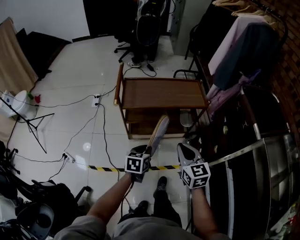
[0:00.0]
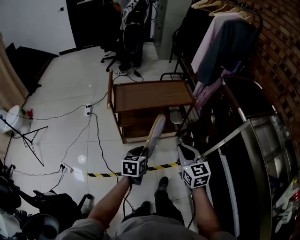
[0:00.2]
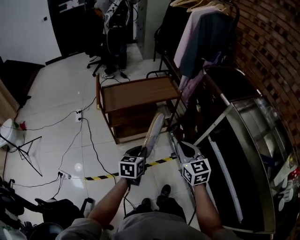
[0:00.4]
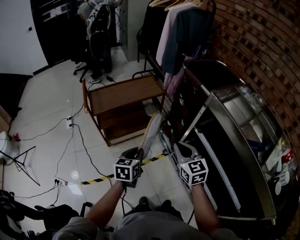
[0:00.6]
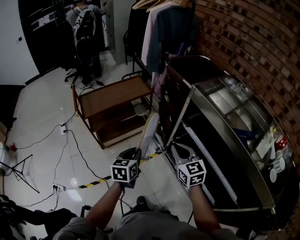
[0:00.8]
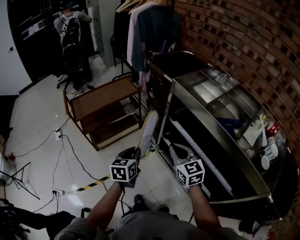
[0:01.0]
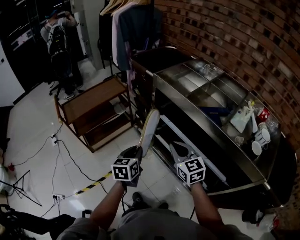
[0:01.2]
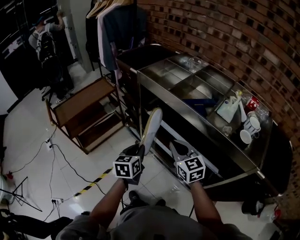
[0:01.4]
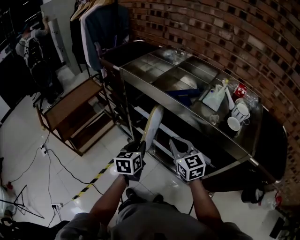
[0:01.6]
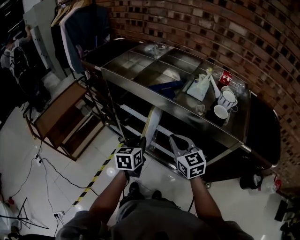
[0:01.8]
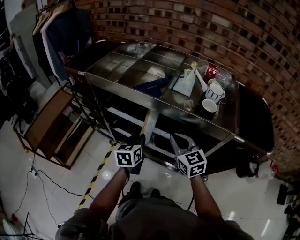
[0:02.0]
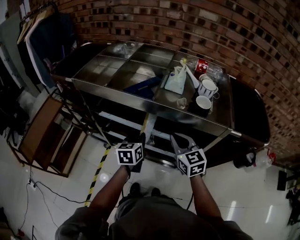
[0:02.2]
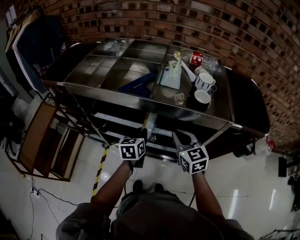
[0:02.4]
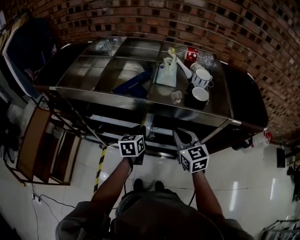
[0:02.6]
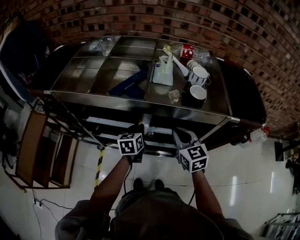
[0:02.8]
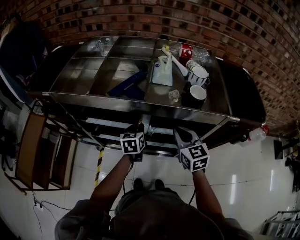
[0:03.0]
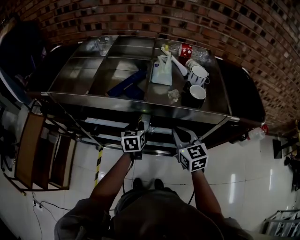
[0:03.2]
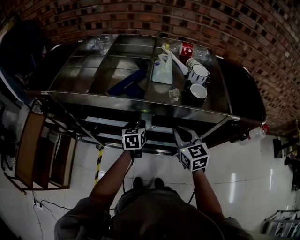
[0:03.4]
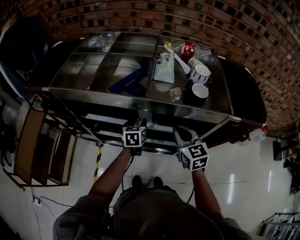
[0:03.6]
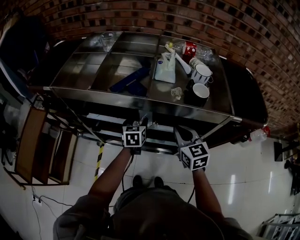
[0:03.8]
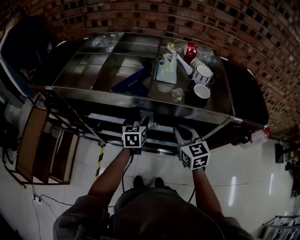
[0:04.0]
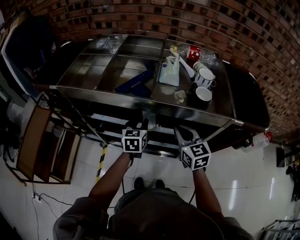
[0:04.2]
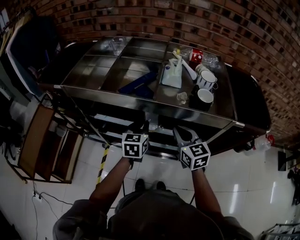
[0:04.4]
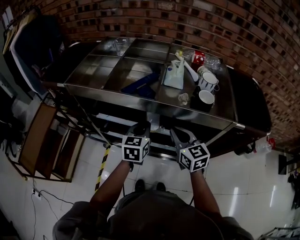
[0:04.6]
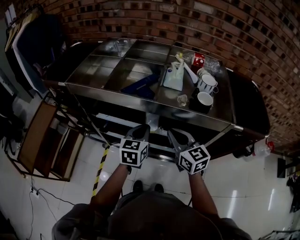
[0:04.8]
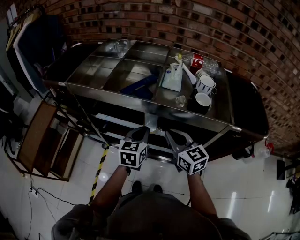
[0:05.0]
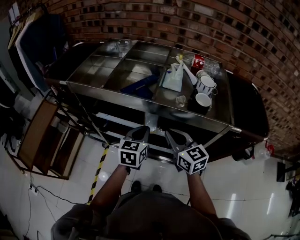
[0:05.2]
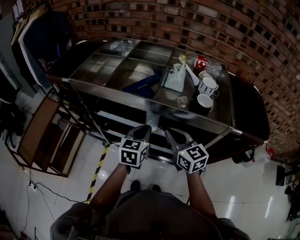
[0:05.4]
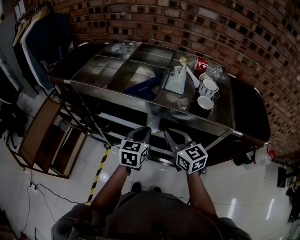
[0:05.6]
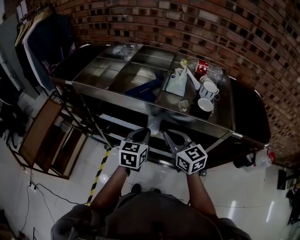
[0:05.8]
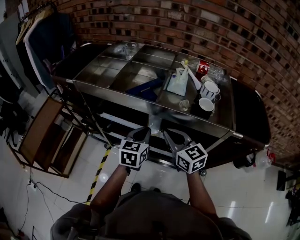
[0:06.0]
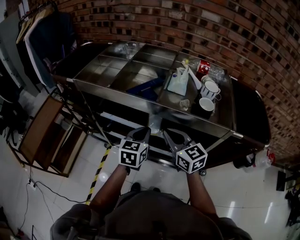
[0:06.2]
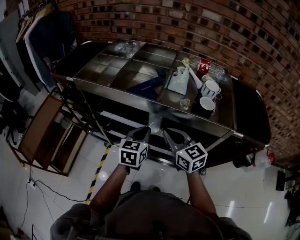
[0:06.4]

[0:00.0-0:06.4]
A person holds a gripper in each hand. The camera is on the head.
0:00.0 to 0:01.6: The pair of grippers is taken roughly 50 cm. The right gripper changes its angle by about 40 degrees. Meanwhile the left gripper changes its angle by about 40 degrees.
0:01.6 to 0:03.2: The left gripper ends up some 25 cm from where it was, and rotates approximately 30 degrees. Meanwhile the right gripper shifts by some 15 cm, and rotates about 40 degrees.
0:03.2 to 0:04.8: The left gripper shifts about 15 cm upward and backward, and opens, then closes once more; the right gripper shifts approximately 5 cm to the left.
0:04.8 to 0:06.4: The grippers move only a little.

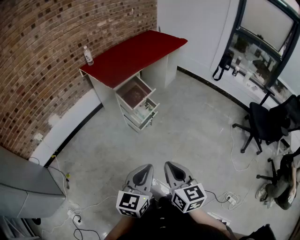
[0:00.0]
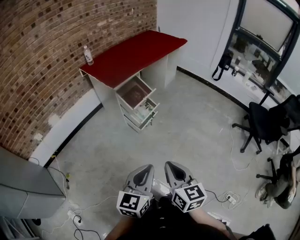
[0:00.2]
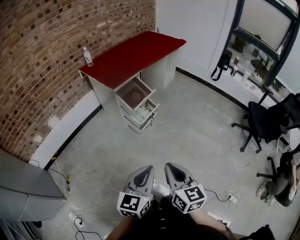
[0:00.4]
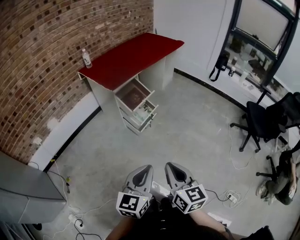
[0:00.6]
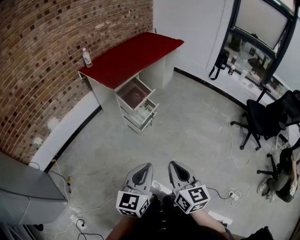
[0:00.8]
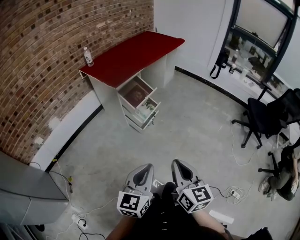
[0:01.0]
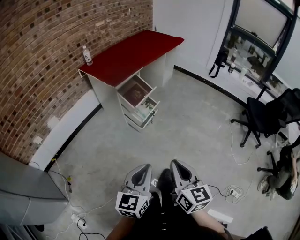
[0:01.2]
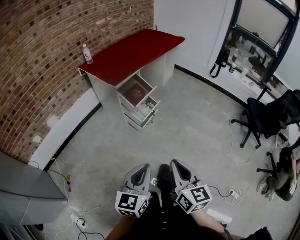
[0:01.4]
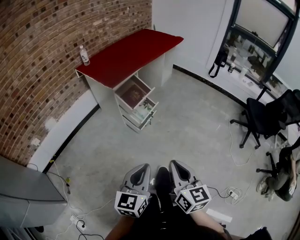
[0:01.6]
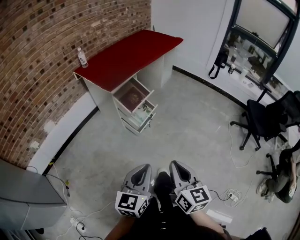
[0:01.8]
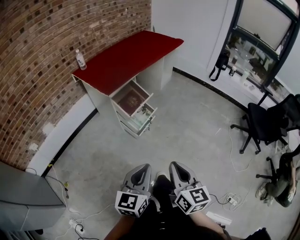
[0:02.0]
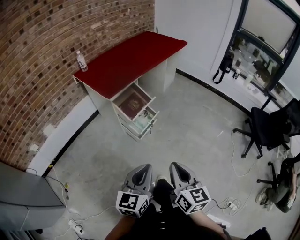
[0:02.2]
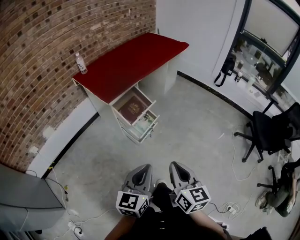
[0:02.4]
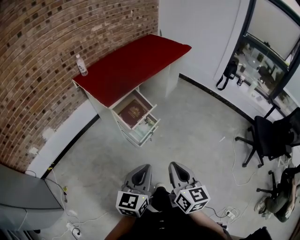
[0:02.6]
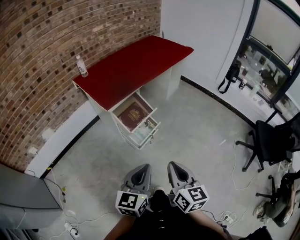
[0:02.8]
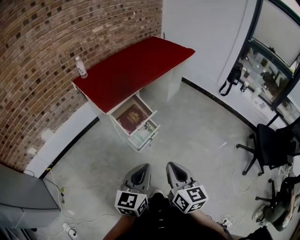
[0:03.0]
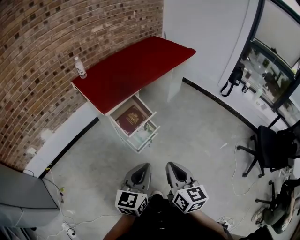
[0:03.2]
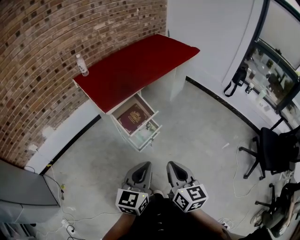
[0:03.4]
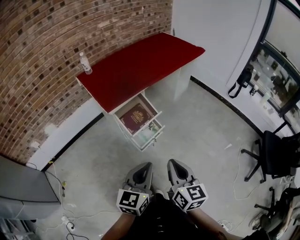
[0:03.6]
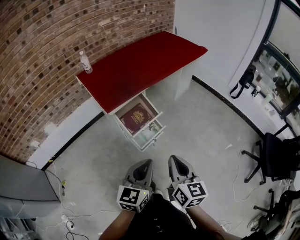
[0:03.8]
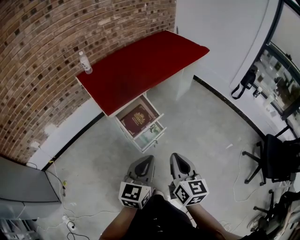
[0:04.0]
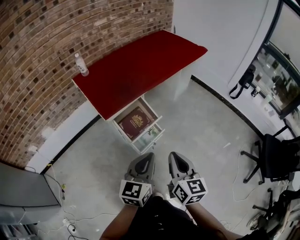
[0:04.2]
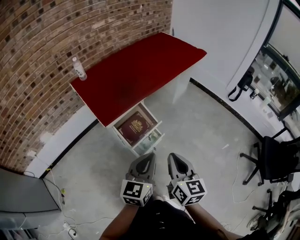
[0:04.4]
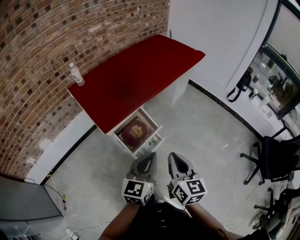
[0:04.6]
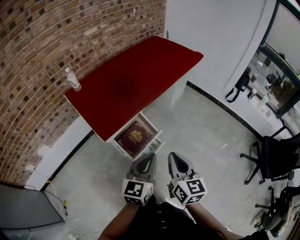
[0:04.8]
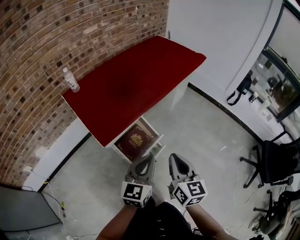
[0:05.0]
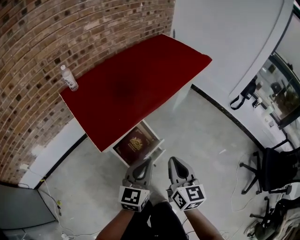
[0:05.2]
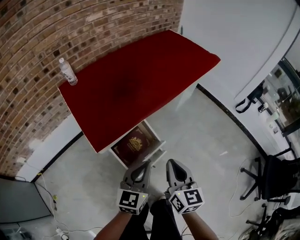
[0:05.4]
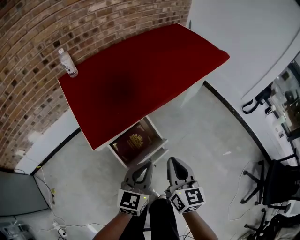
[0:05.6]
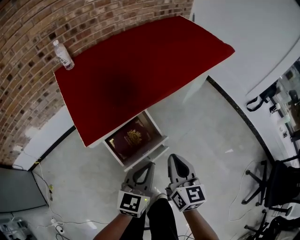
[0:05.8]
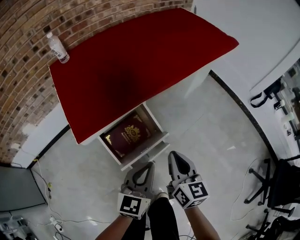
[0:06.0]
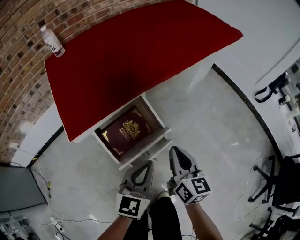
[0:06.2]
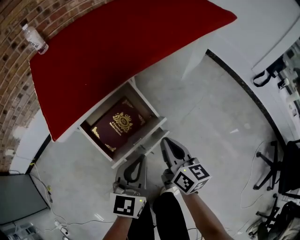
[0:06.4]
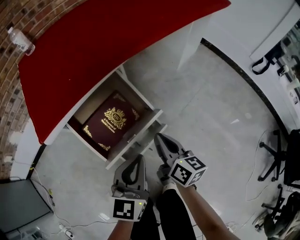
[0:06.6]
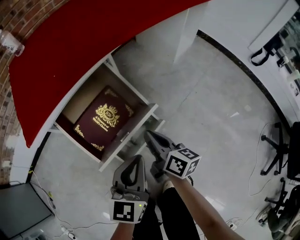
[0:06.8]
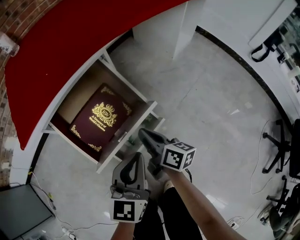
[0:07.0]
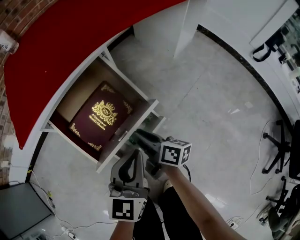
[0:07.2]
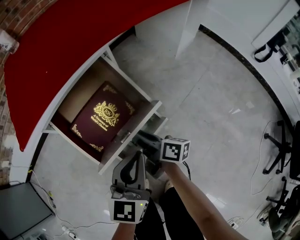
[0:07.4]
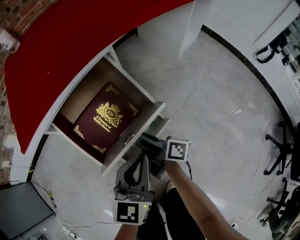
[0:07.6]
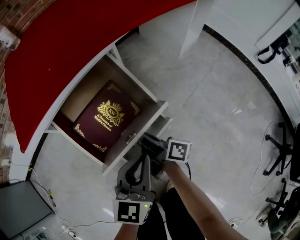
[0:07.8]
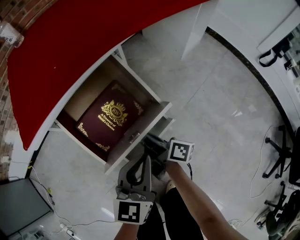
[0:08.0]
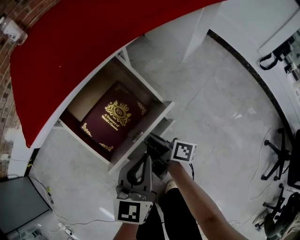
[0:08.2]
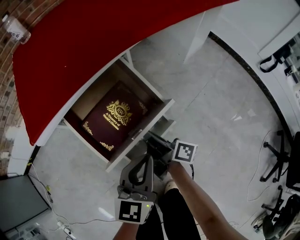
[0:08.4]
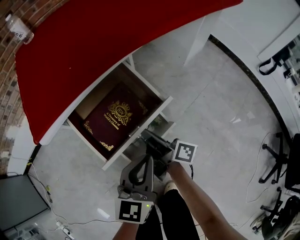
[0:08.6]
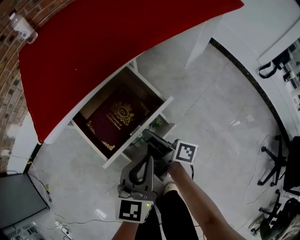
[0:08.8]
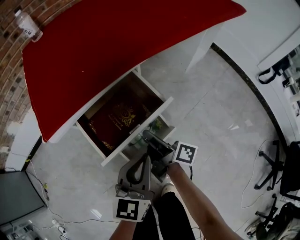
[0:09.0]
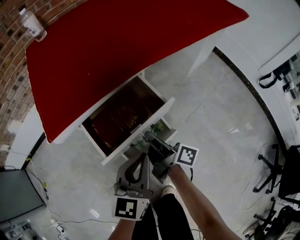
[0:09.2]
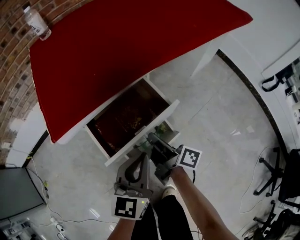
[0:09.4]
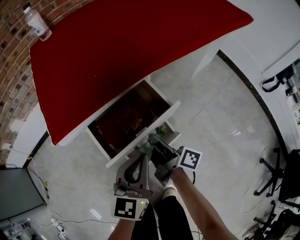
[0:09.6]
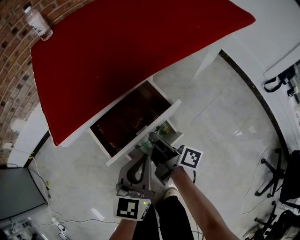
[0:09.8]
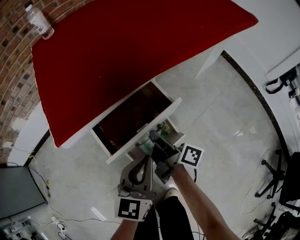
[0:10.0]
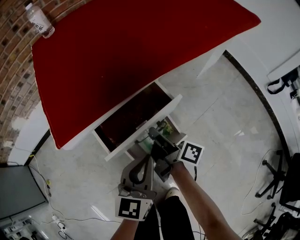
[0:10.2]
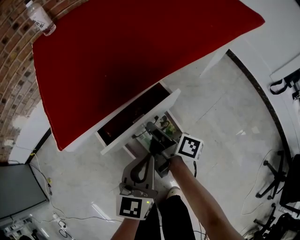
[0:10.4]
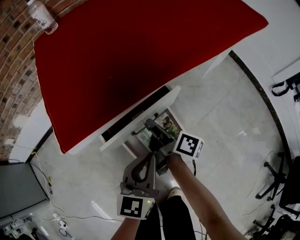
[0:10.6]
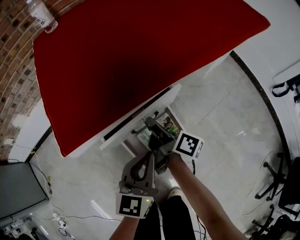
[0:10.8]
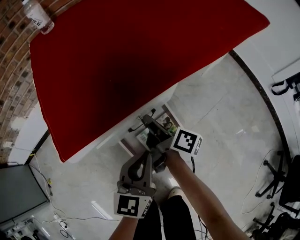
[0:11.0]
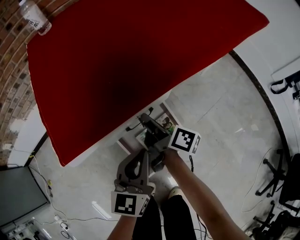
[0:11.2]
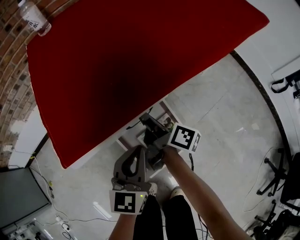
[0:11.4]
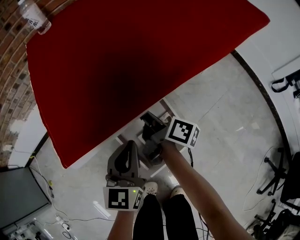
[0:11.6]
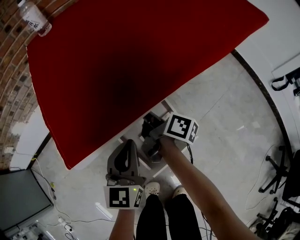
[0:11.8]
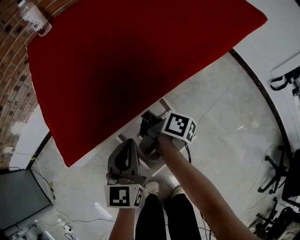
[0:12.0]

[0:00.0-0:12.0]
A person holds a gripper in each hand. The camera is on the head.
0:00.0 to 0:01.6: The left gripper travels to the left by roughly 5 cm.
0:01.6 to 0:03.0: The two grippers go about 25 cm forward.
0:03.0 to 0:04.4: The grippers both shift forward by approximately 20 cm.
0:04.4 to 0:06.0: The left gripper shifts about 25 cm downward and forward, while the right gripper goes about 30 cm forward and downward.
0:06.0 to 0:07.6: The right gripper moves downward, roughly 25 cm, twists some 50 degrees clockwise, seen from behind, and opens up; the left gripper goes some 15 cm downward.
0:07.6 to 0:09.0: The right gripper travels upward by roughly 5 cm. Meanwhile the left gripper moves roughly 5 cm.
0:09.0 to 0:10.4: The right gripper goes some 5 cm forward, while the left gripper shifts by about 5 cm.
0:10.4 to 0:12.0: The left gripper is displaced forward and to the left by about 10 cm, while the right gripper travels forward by some 10 cm.

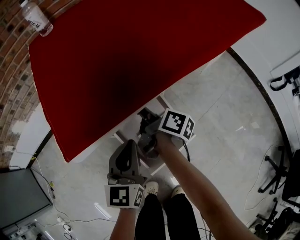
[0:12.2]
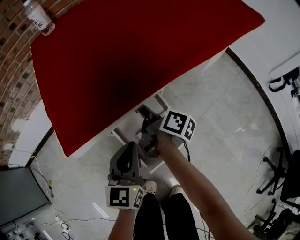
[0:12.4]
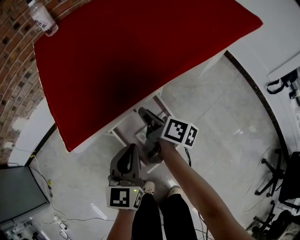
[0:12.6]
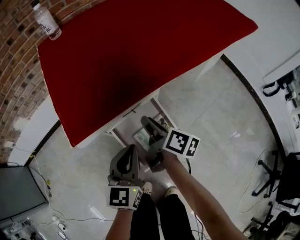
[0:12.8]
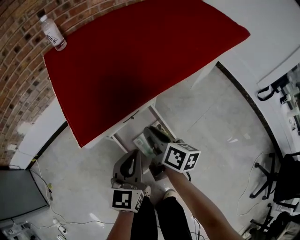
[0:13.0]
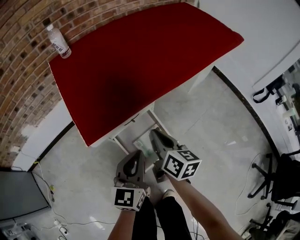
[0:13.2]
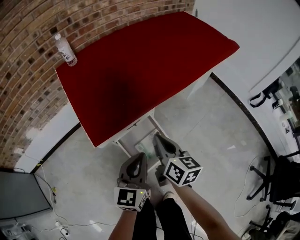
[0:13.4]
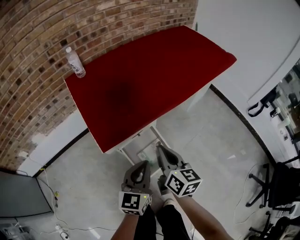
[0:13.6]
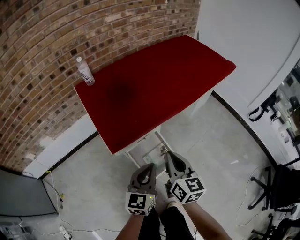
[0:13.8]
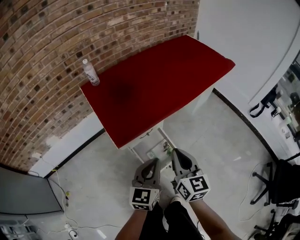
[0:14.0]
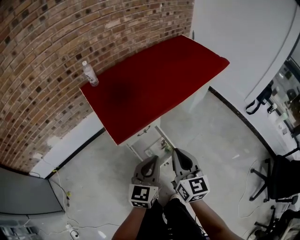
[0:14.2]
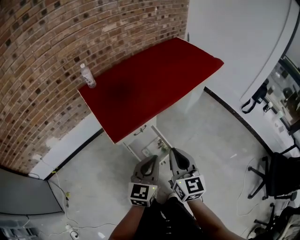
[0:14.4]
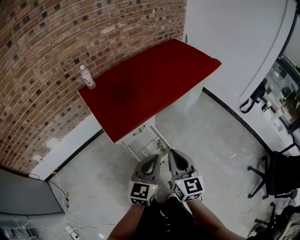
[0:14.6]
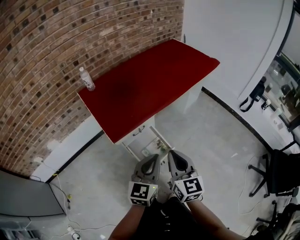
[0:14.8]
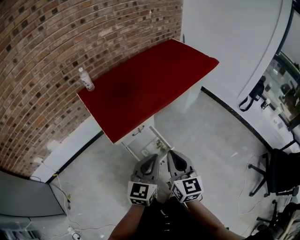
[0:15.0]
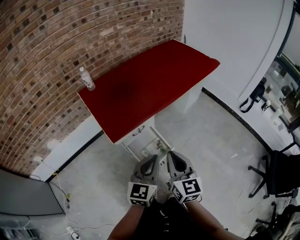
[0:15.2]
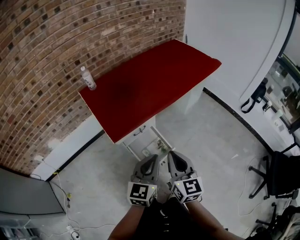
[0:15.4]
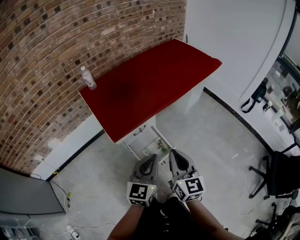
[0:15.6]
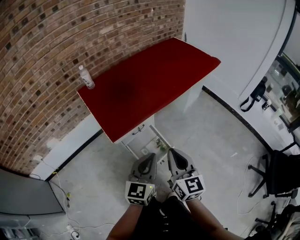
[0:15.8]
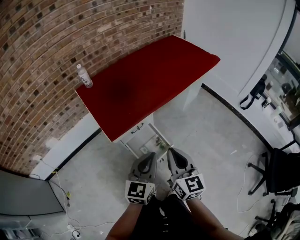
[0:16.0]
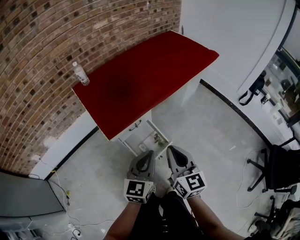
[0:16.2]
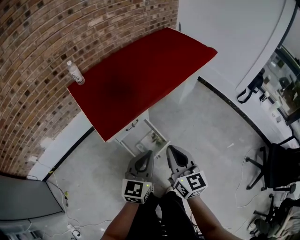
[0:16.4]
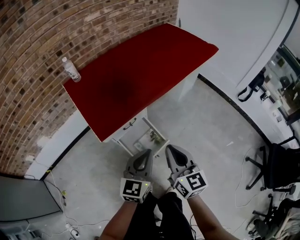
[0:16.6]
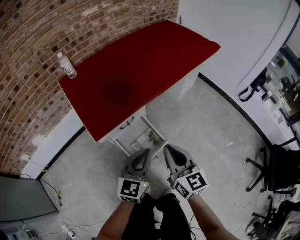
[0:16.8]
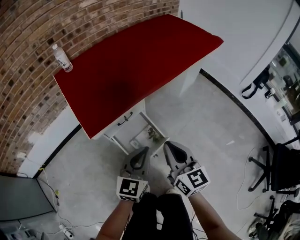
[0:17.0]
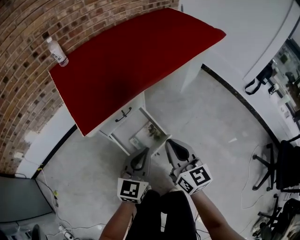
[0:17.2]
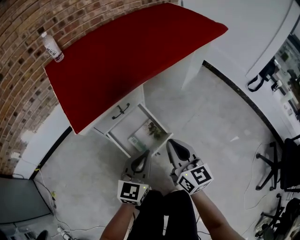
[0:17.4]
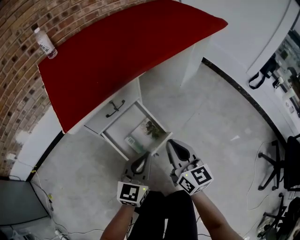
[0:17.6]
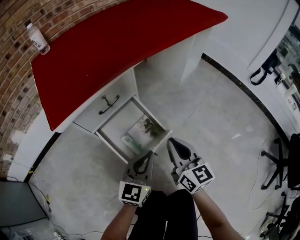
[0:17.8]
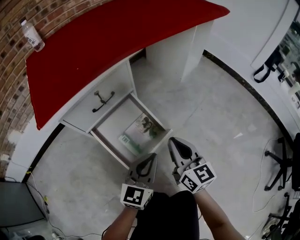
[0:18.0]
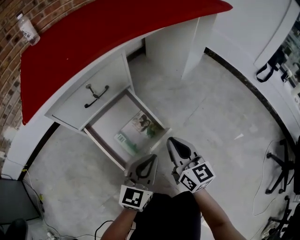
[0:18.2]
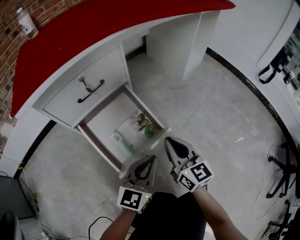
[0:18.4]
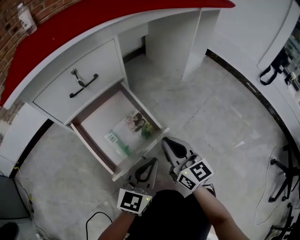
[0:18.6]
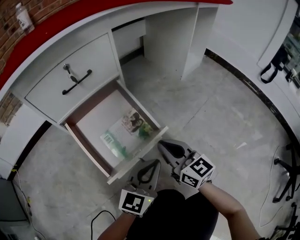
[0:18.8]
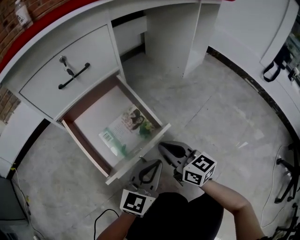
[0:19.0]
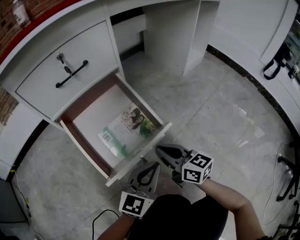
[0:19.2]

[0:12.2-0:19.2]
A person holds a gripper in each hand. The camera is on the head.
0:12.2 to 0:13.6: Both grippers travel together upward and backward, about 25 cm. The right gripper rotates around the line of its fingers by approximately 40 degrees, counterclockwise from behind, and opens, then closes once more.
0:13.6 to 0:15.0: The right gripper is displaced upward, backward and to the right by some 20 cm, and swivels about 20 degrees, while the left gripper travels upward and backward by approximately 15 cm.
0:15.0 to 0:16.4: The grippers make only small movements.
0:16.4 to 0:17.8: The two grippers go about 35 cm downward.
0:17.8 to 0:19.2: The two grippers go roughly 25 cm downward. The right gripper turns by about 30 degrees.
